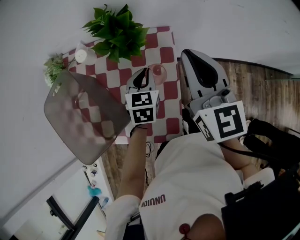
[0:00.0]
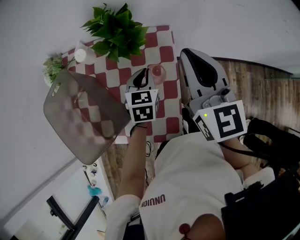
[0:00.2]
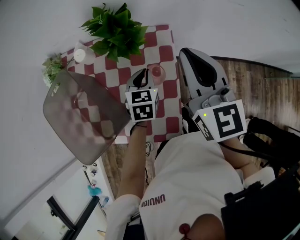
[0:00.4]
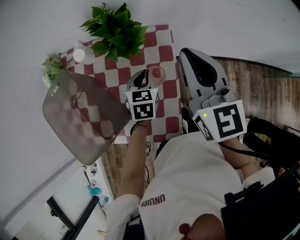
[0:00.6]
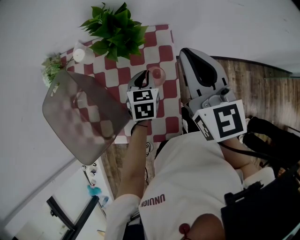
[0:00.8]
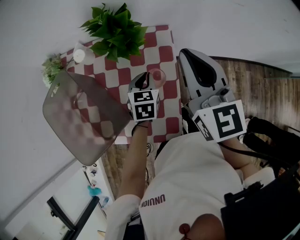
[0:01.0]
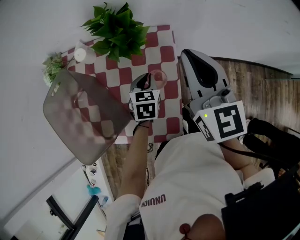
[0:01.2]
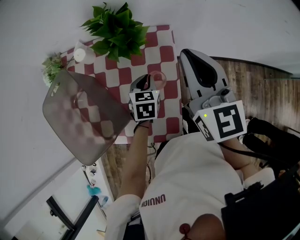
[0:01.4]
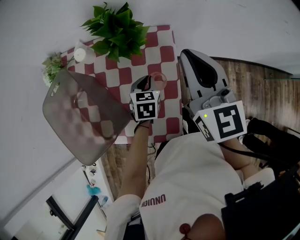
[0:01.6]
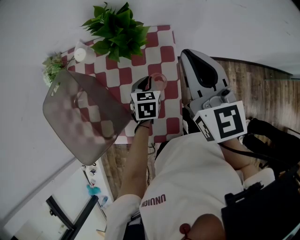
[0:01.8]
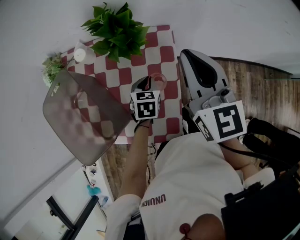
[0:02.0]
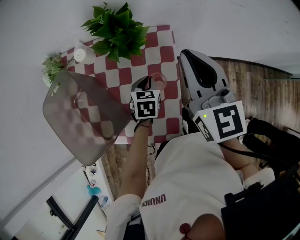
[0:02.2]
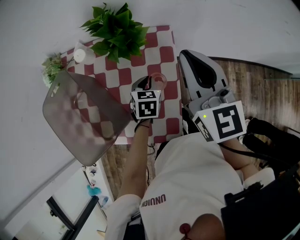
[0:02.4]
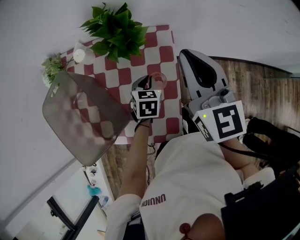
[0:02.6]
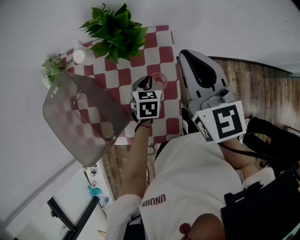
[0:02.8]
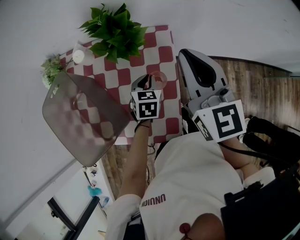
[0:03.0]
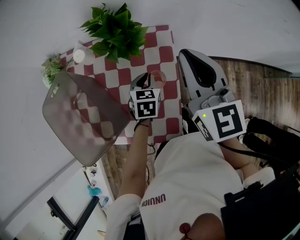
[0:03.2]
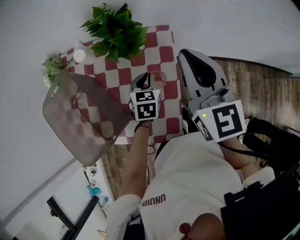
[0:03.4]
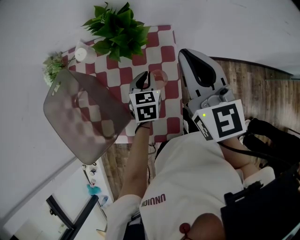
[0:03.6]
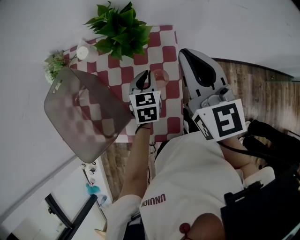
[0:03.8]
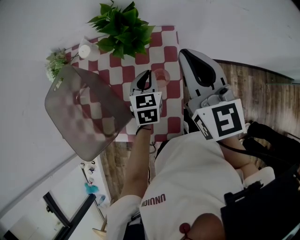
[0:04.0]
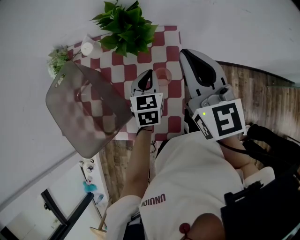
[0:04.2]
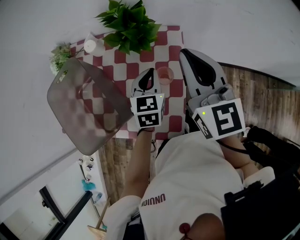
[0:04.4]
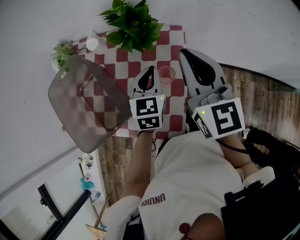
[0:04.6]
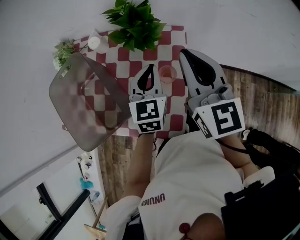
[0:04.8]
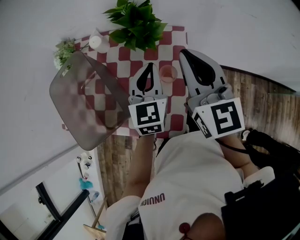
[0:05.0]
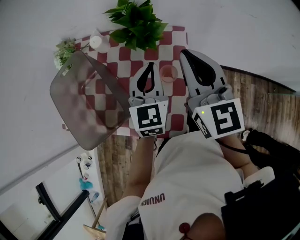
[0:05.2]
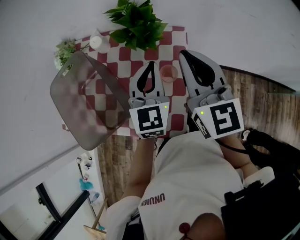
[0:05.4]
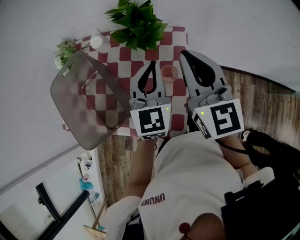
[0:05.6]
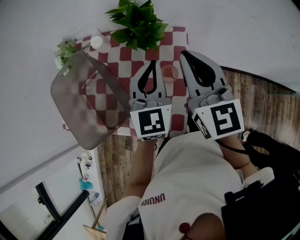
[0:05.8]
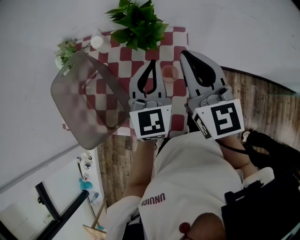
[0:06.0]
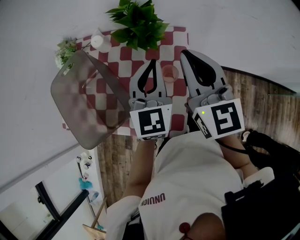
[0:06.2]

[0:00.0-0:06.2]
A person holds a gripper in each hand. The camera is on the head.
0:00.0 to 0:01.6: The left gripper shifts about 5 cm downward.
0:01.6 to 0:03.2: Neither gripper changes place.
0:03.2 to 0:04.6: The left gripper travels upward by approximately 10 cm, and changes its angle by about 20 degrees.
0:04.6 to 0:06.2: The left gripper goes approximately 10 cm upward.

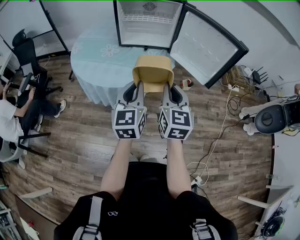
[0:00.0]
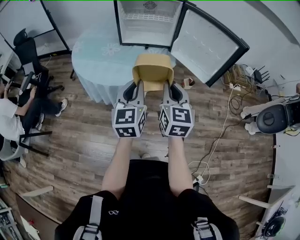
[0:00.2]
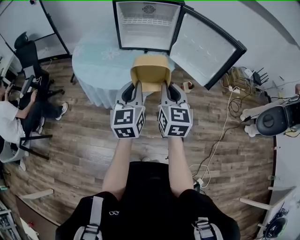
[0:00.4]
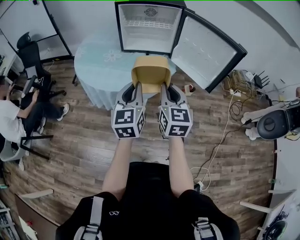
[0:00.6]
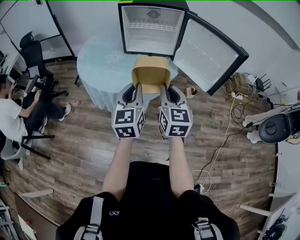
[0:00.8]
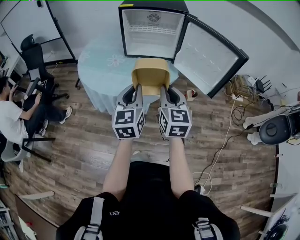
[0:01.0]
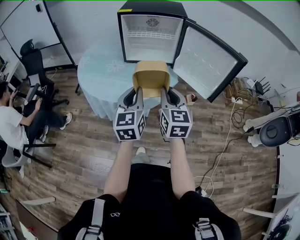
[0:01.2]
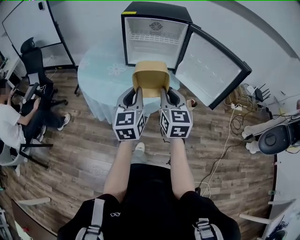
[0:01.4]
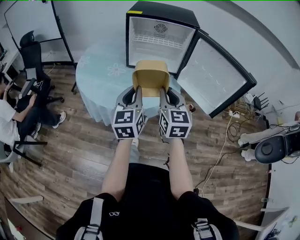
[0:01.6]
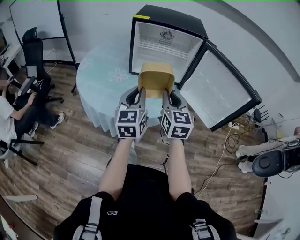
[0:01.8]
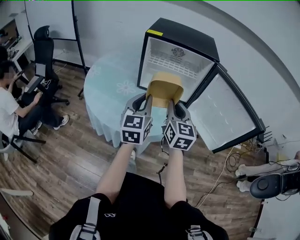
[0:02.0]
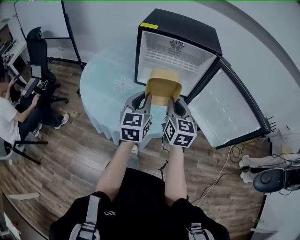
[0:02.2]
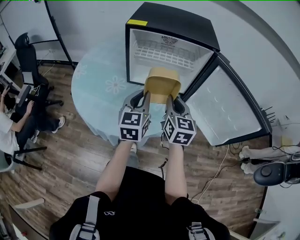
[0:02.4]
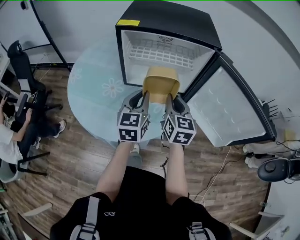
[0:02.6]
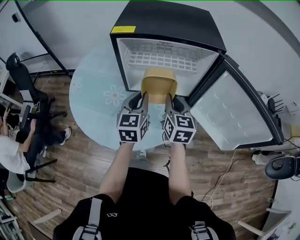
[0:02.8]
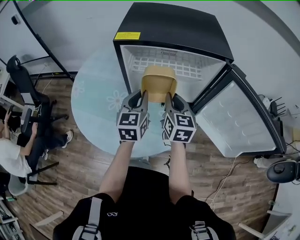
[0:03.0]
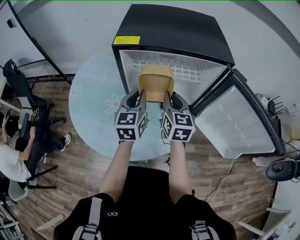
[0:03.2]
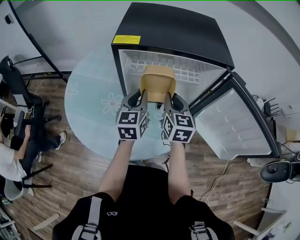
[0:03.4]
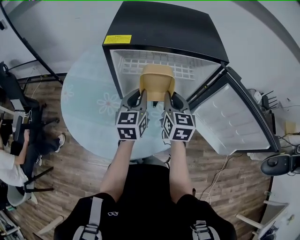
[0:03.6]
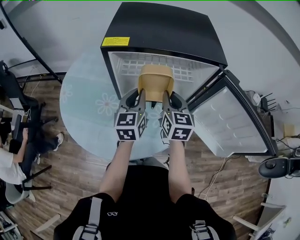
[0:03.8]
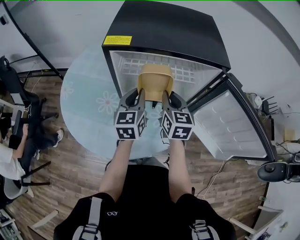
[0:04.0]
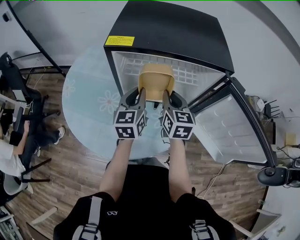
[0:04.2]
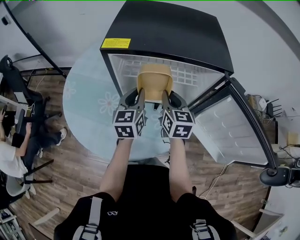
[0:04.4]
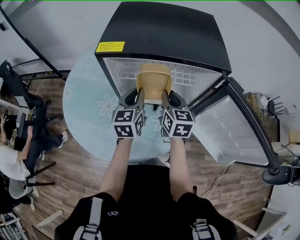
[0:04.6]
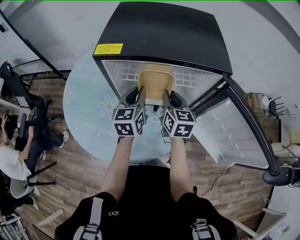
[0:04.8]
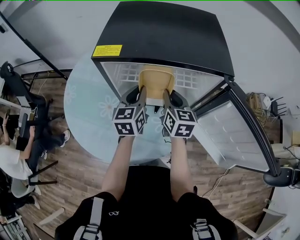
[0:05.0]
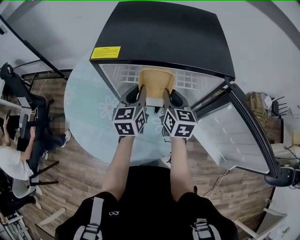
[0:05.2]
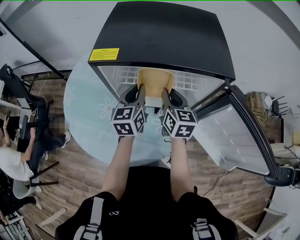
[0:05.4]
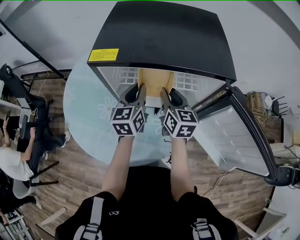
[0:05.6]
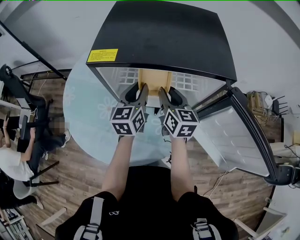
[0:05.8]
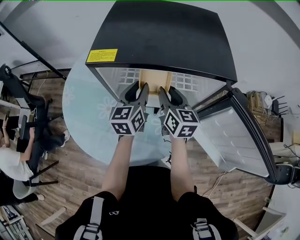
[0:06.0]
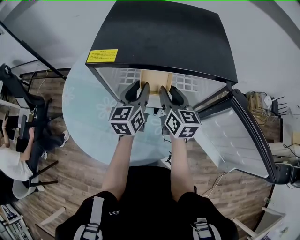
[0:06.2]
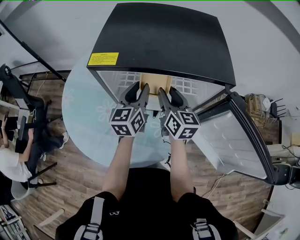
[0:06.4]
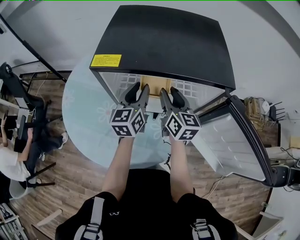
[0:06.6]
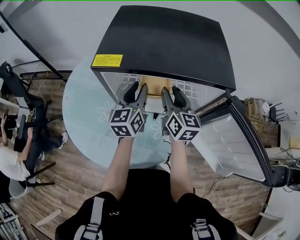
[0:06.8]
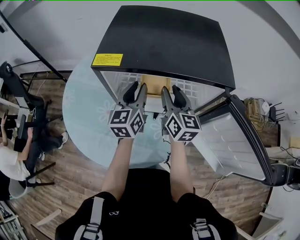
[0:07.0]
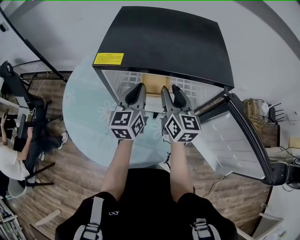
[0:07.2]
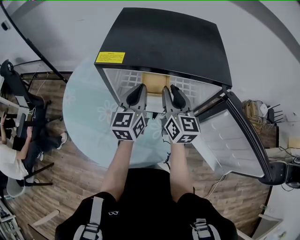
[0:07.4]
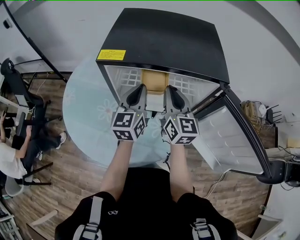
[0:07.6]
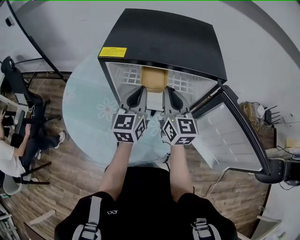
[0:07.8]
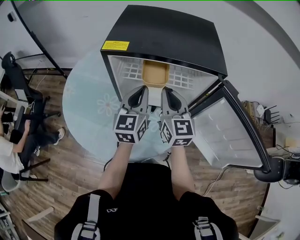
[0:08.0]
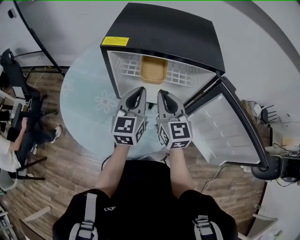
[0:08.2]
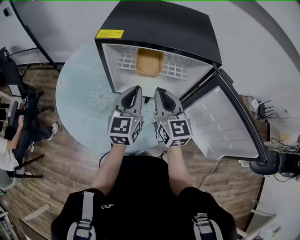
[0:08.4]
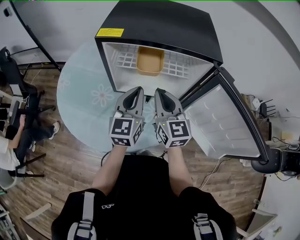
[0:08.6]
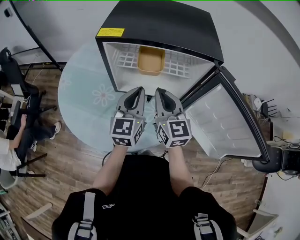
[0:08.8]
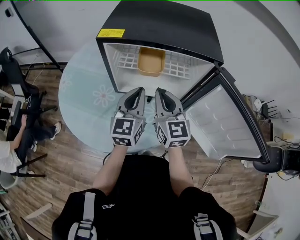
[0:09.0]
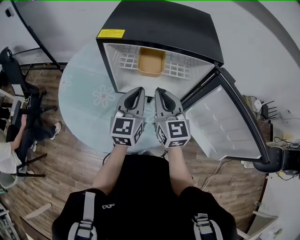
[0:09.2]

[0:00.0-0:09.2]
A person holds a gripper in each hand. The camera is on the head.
0:00.0 to 0:01.6: The two grippers go roughly 10 cm forward.
0:01.6 to 0:03.0: Both grippers move forward, roughly 35 cm.
0:03.0 to 0:04.6: Both grippers move forward, roughly 5 cm.
0:04.6 to 0:06.2: The left gripper travels forward by roughly 5 cm, and opens up; the right gripper opens its fingers.
0:06.2 to 0:07.6: The left gripper moves some 5 cm, and closes its fingers, while the right gripper moves upward, about 5 cm, and closes its fingers.
0:07.6 to 0:09.2: Both grippers move backward, approximately 10 cm.

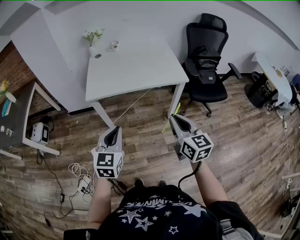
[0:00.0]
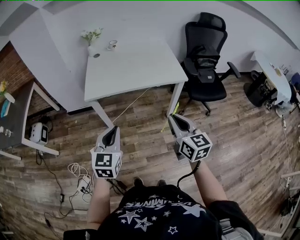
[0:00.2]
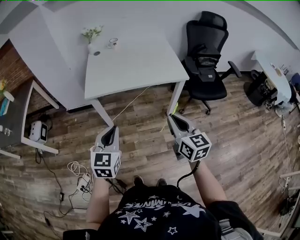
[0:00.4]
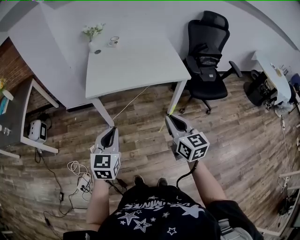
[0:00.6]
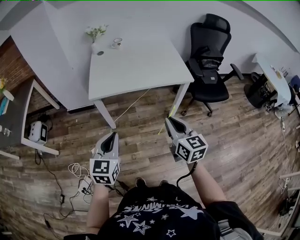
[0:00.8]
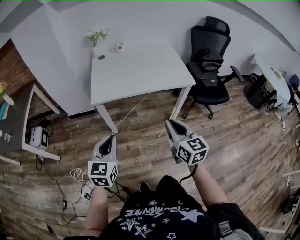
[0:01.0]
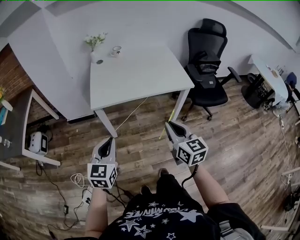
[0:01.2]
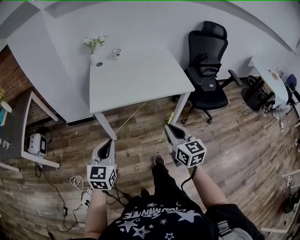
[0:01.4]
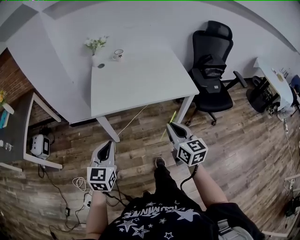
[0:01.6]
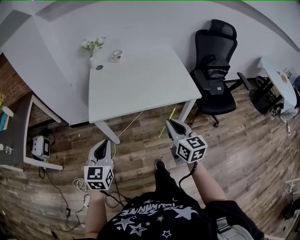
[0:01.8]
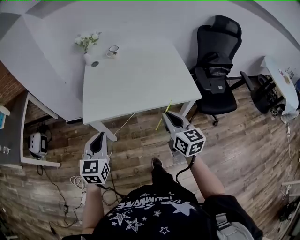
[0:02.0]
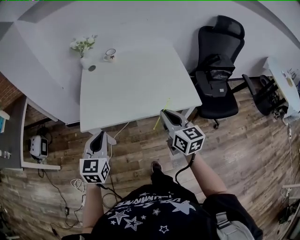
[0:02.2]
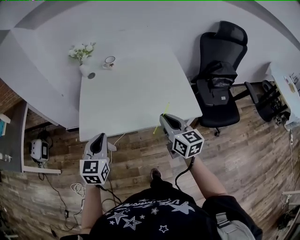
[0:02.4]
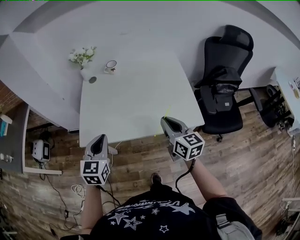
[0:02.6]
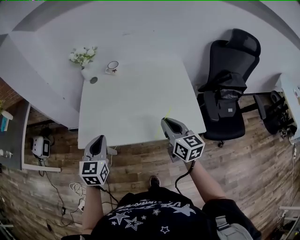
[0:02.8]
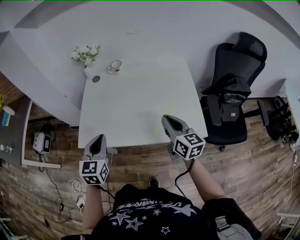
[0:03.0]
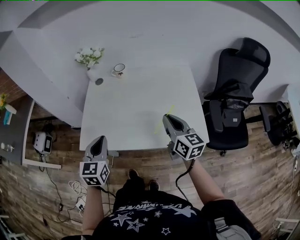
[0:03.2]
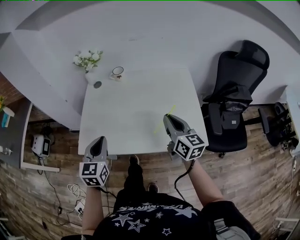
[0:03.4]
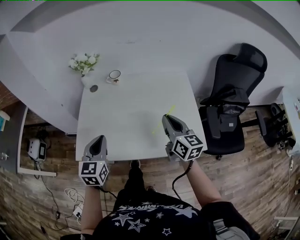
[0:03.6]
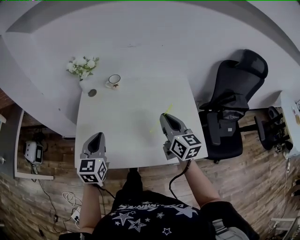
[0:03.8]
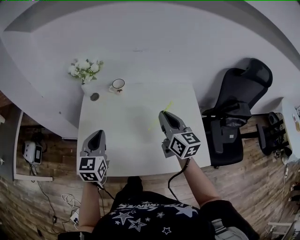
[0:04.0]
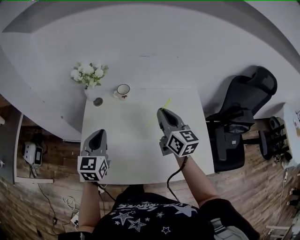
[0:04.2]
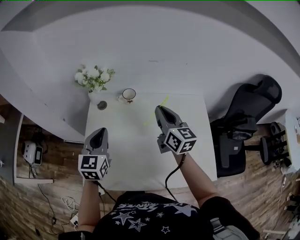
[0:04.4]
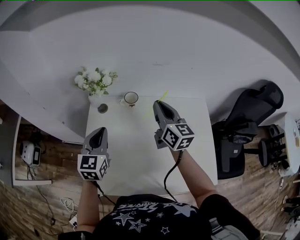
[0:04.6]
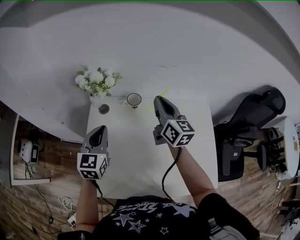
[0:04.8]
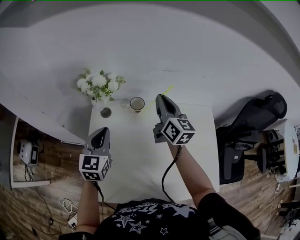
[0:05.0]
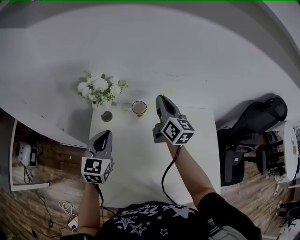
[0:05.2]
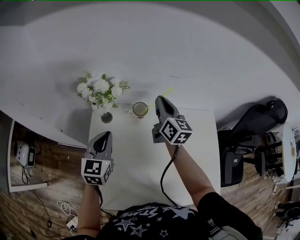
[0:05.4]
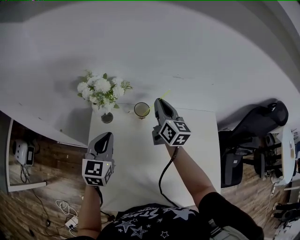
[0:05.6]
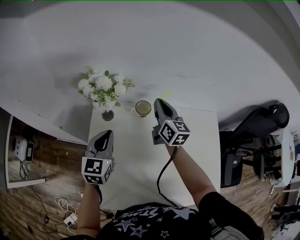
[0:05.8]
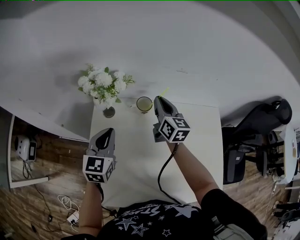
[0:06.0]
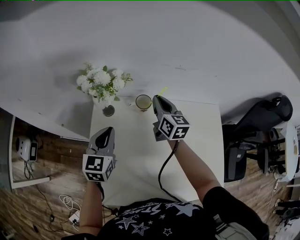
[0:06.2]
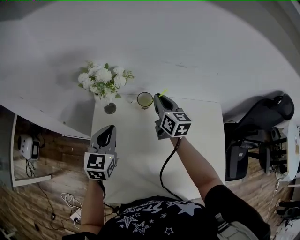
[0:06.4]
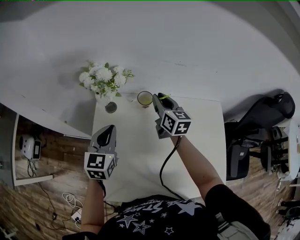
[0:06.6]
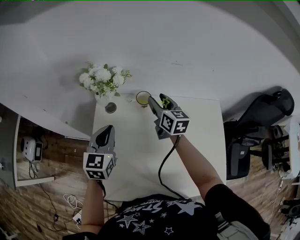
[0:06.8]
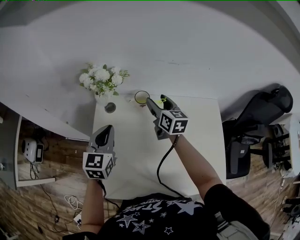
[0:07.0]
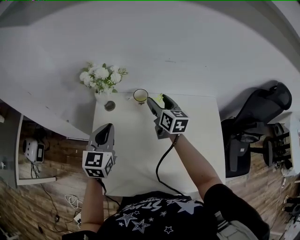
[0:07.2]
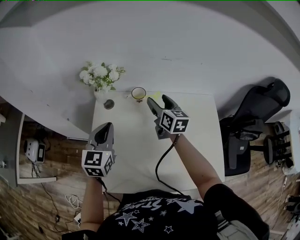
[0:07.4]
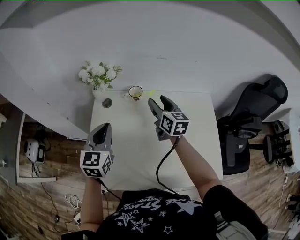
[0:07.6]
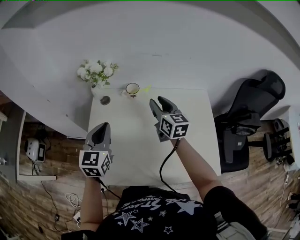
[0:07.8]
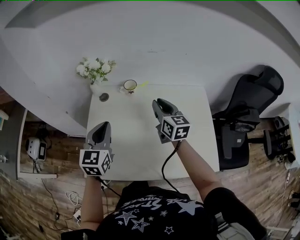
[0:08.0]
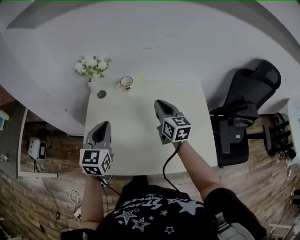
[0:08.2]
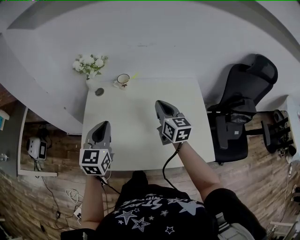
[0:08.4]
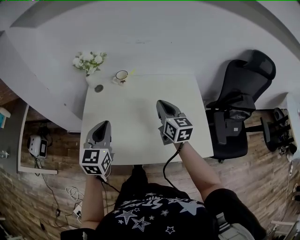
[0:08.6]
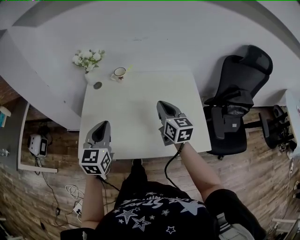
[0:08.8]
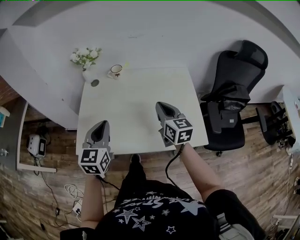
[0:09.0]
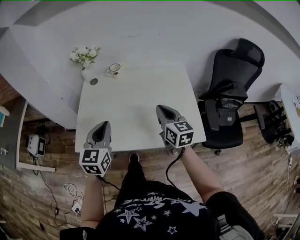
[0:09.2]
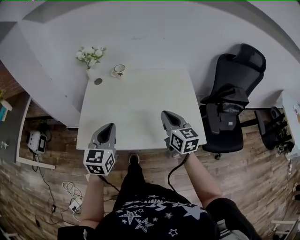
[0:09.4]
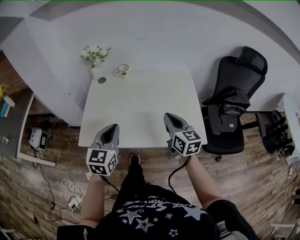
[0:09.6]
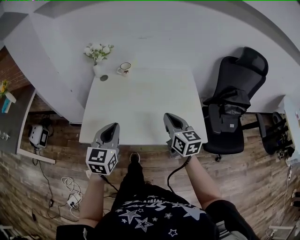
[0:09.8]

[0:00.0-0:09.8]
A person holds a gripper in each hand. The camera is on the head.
0:00.0 to 0:01.4: The right gripper moves to the left and forward, some 10 cm; the left gripper travels to the left by roughly 10 cm.
0:01.4 to 0:02.8: The grippers both shift forward by about 30 cm.
0:02.8 to 0:04.2: Both grippers travel together forward, some 25 cm.
0:04.2 to 0:05.6: The left gripper goes roughly 15 cm forward. Meanwhile the right gripper travels forward and to the left by roughly 25 cm.
0:05.6 to 0:07.0: The right gripper ends up roughly 5 cm from where it was, and opens its fingers.
0:07.0 to 0:08.4: The two grippers go about 20 cm backward and to the right. The right gripper closes up.
0:08.4 to 0:09.8: Both grippers move backward, approximately 20 cm.
